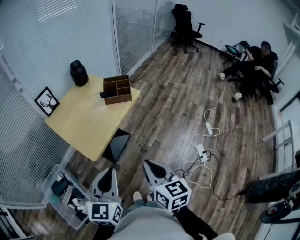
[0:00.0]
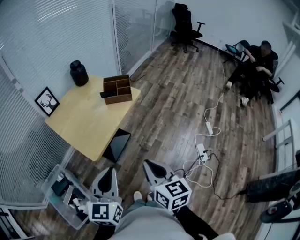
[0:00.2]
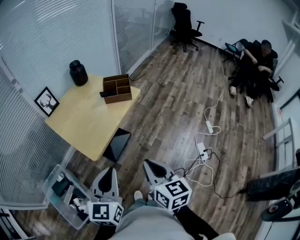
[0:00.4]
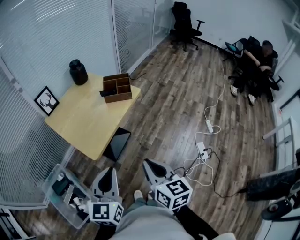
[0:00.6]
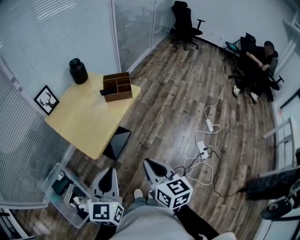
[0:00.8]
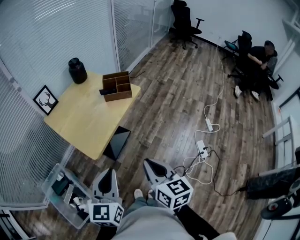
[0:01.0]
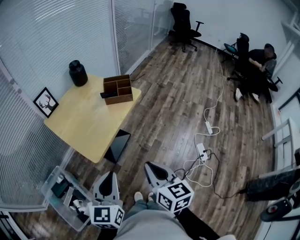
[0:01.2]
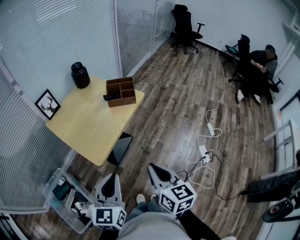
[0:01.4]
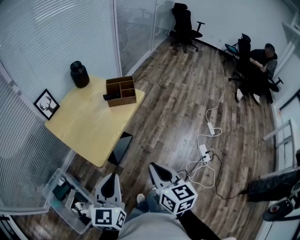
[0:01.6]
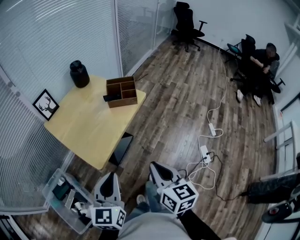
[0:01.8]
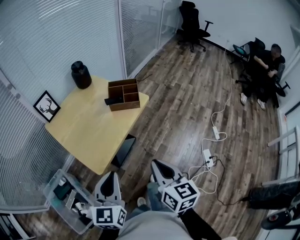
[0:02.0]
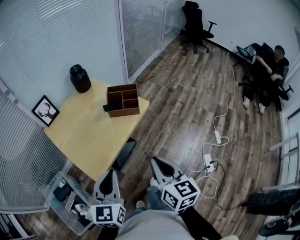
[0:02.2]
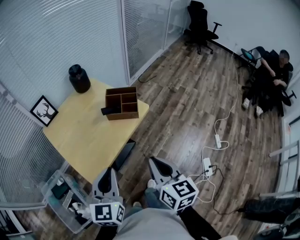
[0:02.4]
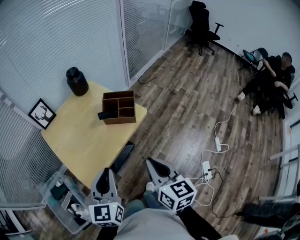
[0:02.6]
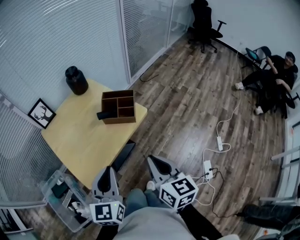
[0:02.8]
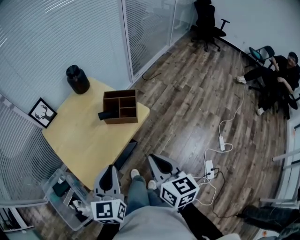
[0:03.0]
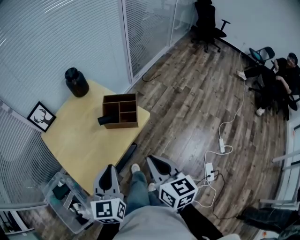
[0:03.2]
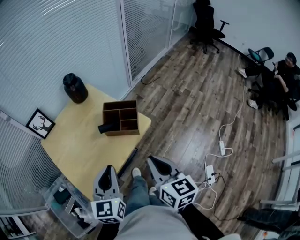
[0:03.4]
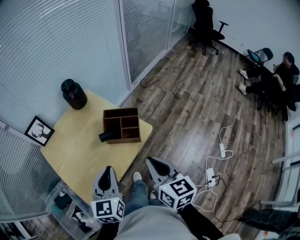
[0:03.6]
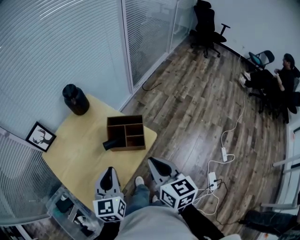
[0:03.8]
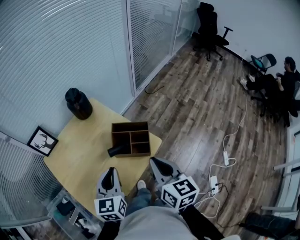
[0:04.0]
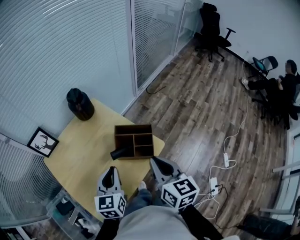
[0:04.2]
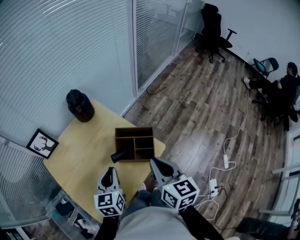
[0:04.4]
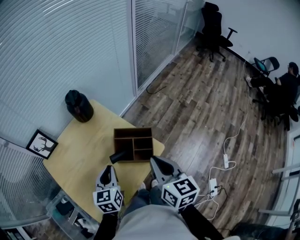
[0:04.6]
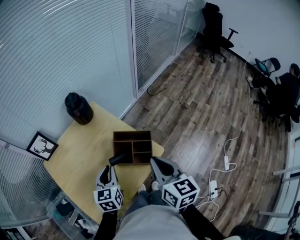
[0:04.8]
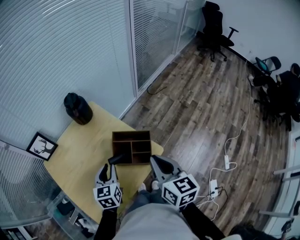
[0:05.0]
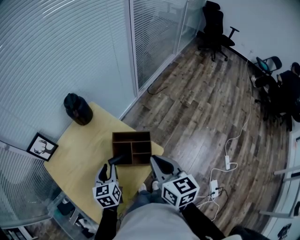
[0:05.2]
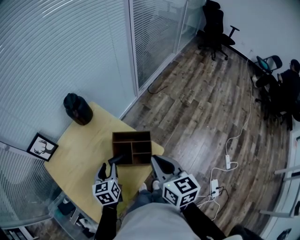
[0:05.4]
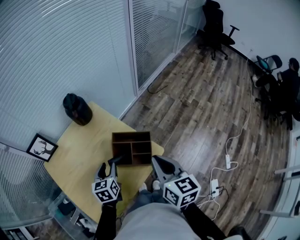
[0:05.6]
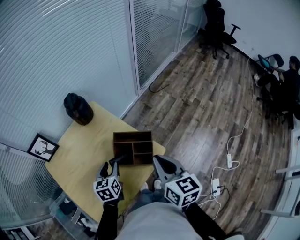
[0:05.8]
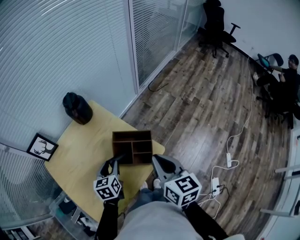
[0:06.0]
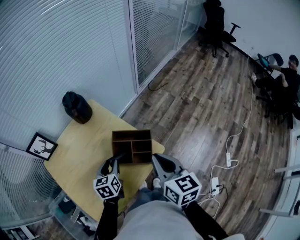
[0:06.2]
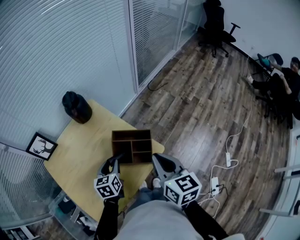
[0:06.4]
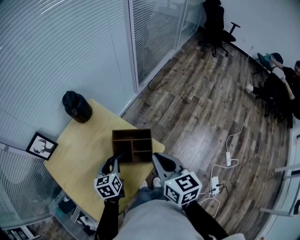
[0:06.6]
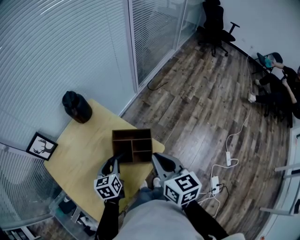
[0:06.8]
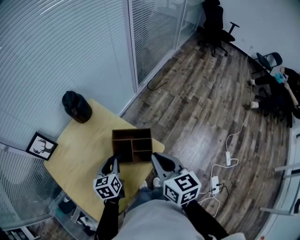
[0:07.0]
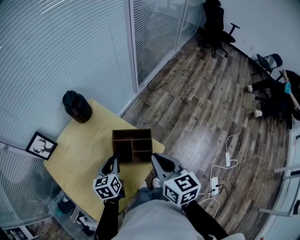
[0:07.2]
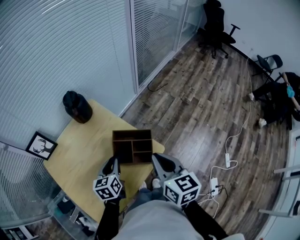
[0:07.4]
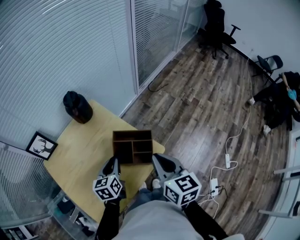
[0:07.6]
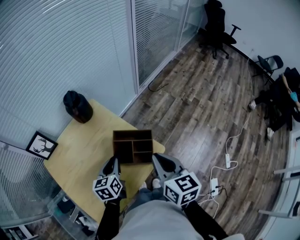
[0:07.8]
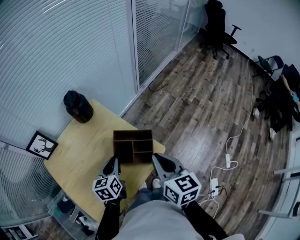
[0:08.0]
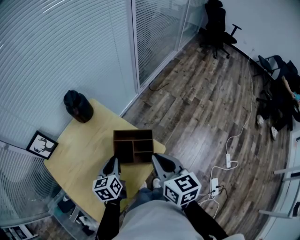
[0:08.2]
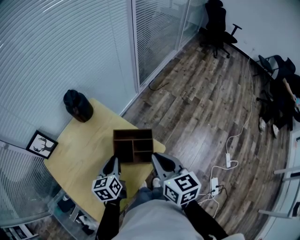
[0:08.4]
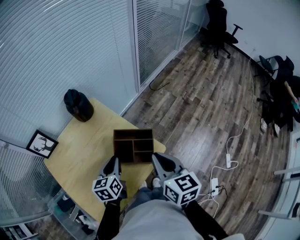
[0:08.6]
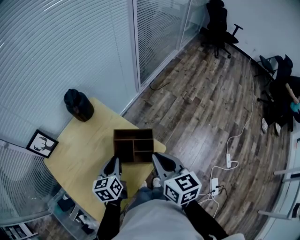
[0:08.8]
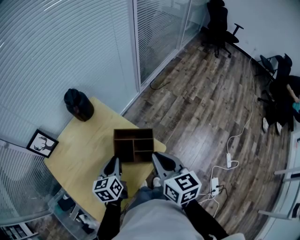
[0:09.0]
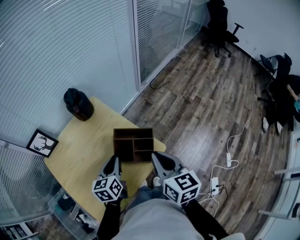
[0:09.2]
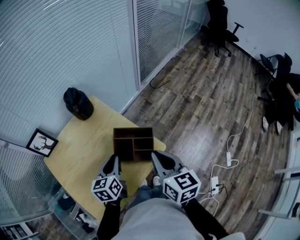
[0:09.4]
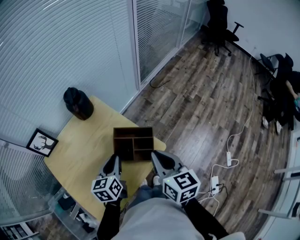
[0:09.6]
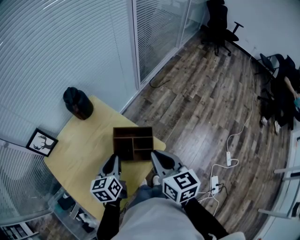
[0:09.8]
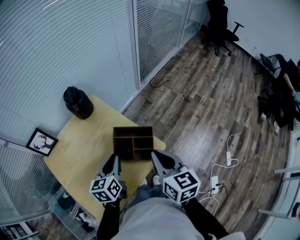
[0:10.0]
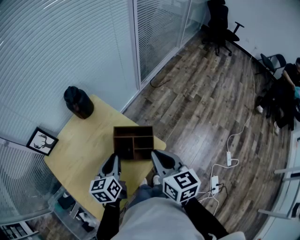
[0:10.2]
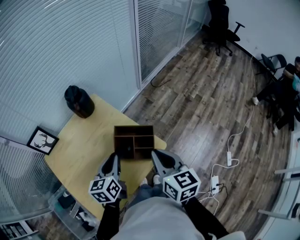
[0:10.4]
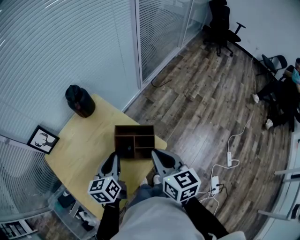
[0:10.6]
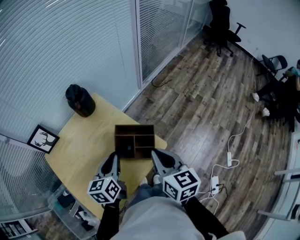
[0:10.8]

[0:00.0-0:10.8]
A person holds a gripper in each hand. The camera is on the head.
0:00.0 to 0:01.6: There are only small adjustments of the grippers.
0:01.6 to 0:03.0: The grippers both shift forward and to the right by about 25 cm.
0:03.0 to 0:04.6: The left gripper goes roughly 30 cm forward and downward. The right gripper moves forward, some 25 cm.
0:04.6 to 0:06.2: The left gripper goes approximately 5 cm downward, and opens its fingers.
0:06.2 to 0:09.2: There are only small adjustments of the grippers.
0:09.2 to 0:10.8: There are only small adjustments of the grippers.

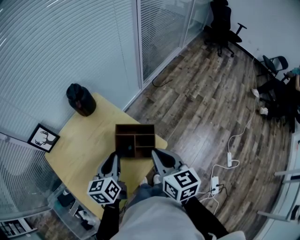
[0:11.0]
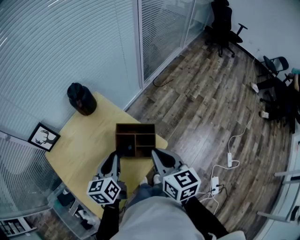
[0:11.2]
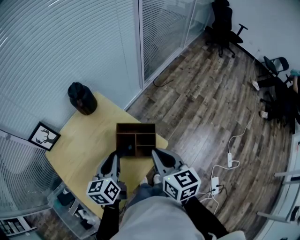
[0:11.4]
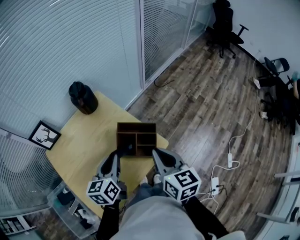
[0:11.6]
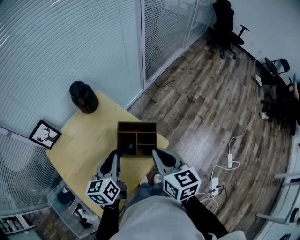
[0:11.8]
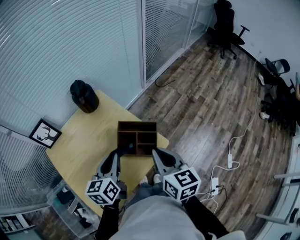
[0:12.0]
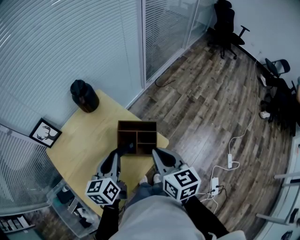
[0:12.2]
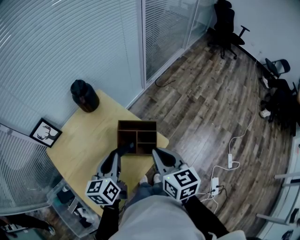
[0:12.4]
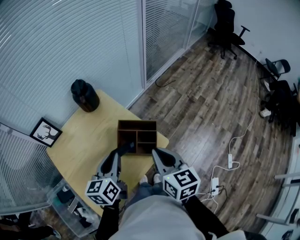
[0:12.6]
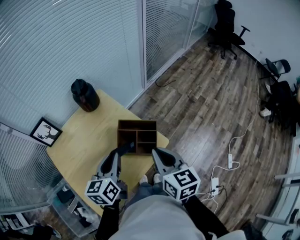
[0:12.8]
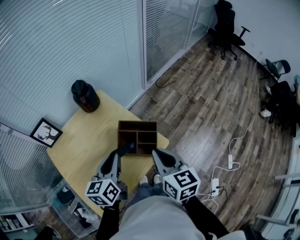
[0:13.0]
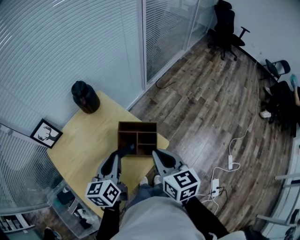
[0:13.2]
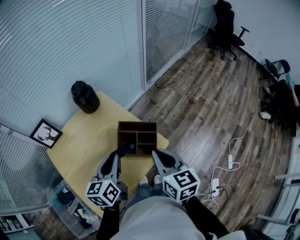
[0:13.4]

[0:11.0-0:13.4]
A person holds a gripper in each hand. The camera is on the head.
0:11.0 to 0:12.2: There are only small adjustments of the grippers.
0:12.2 to 0:13.4: Both grippers stay about where they are.

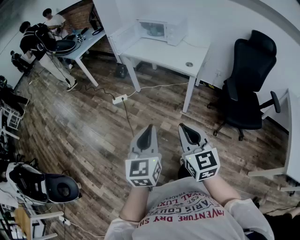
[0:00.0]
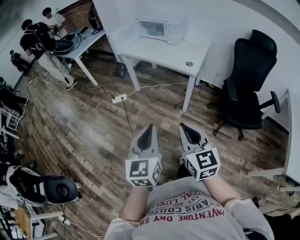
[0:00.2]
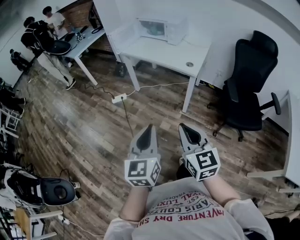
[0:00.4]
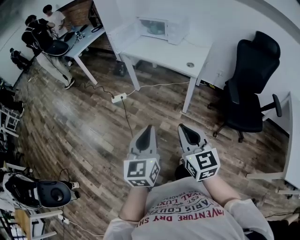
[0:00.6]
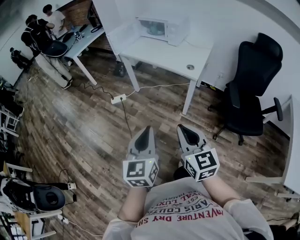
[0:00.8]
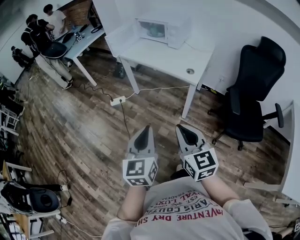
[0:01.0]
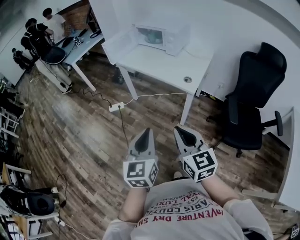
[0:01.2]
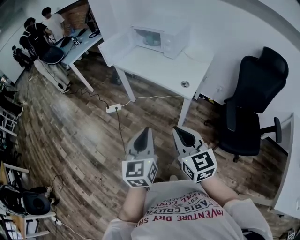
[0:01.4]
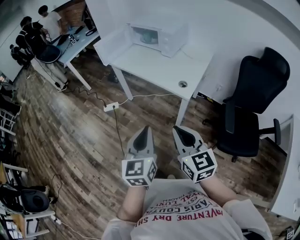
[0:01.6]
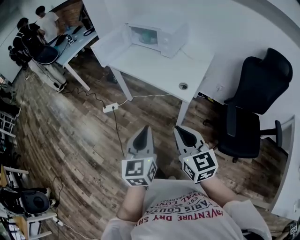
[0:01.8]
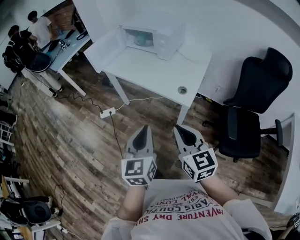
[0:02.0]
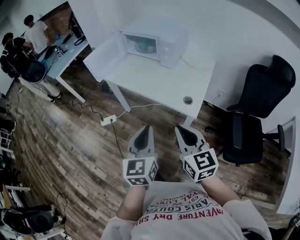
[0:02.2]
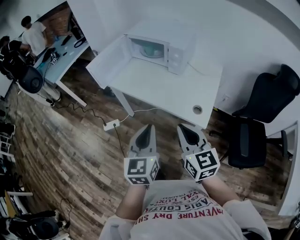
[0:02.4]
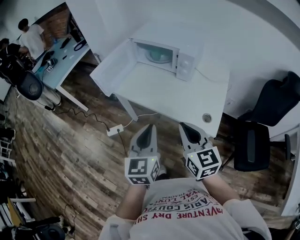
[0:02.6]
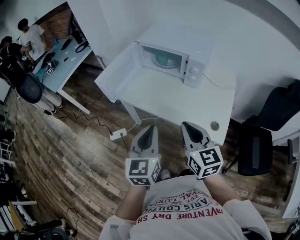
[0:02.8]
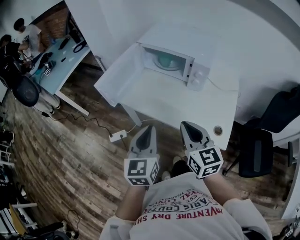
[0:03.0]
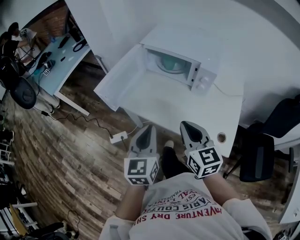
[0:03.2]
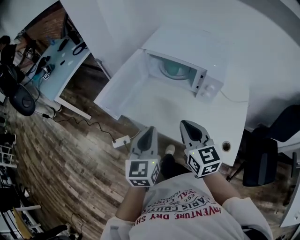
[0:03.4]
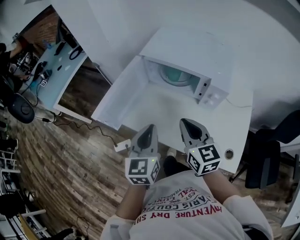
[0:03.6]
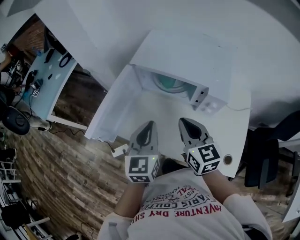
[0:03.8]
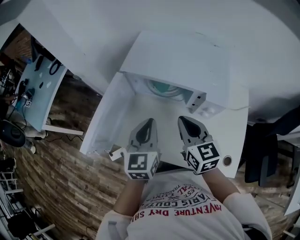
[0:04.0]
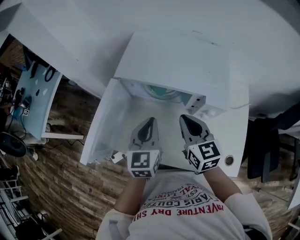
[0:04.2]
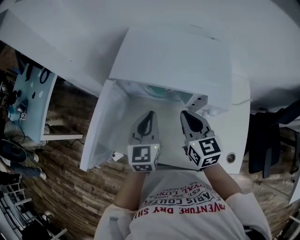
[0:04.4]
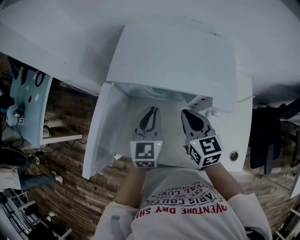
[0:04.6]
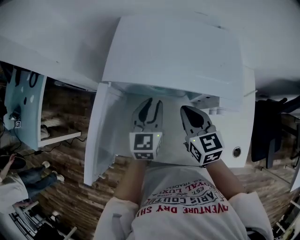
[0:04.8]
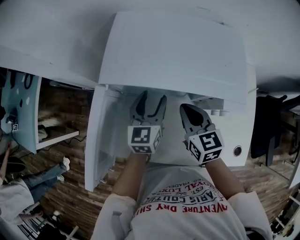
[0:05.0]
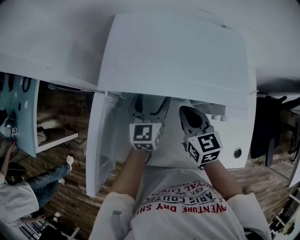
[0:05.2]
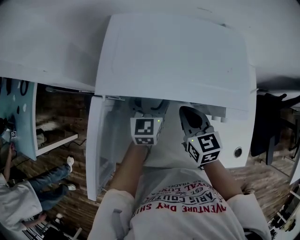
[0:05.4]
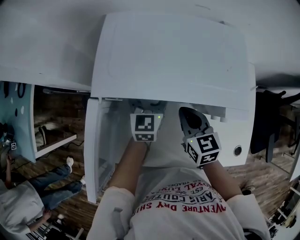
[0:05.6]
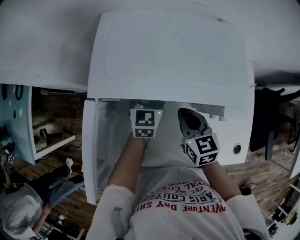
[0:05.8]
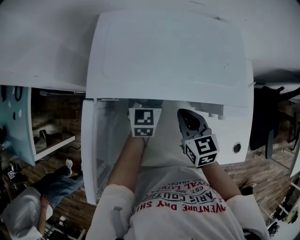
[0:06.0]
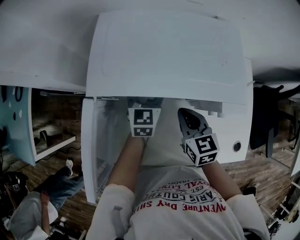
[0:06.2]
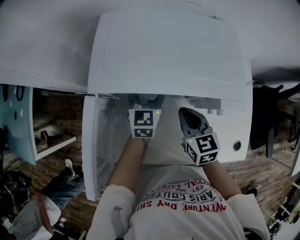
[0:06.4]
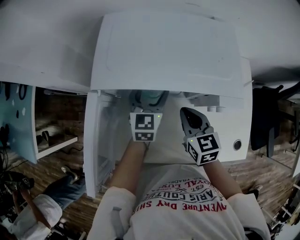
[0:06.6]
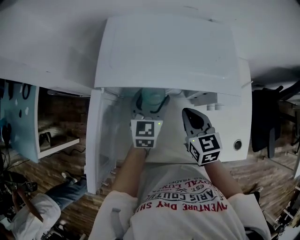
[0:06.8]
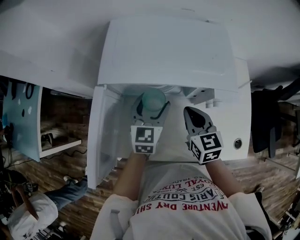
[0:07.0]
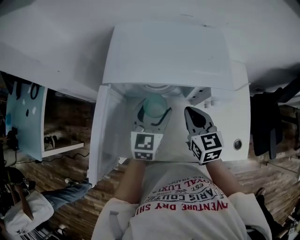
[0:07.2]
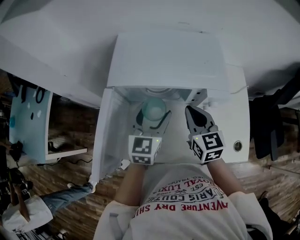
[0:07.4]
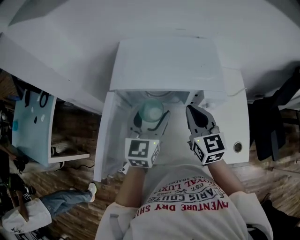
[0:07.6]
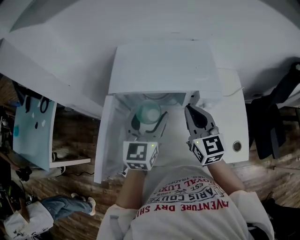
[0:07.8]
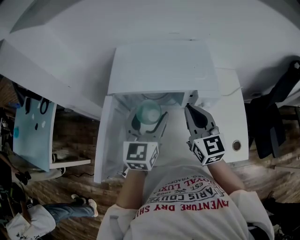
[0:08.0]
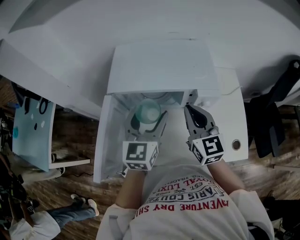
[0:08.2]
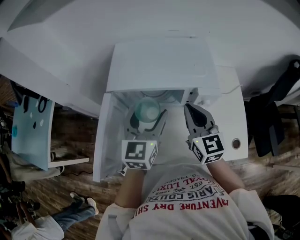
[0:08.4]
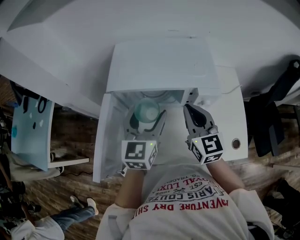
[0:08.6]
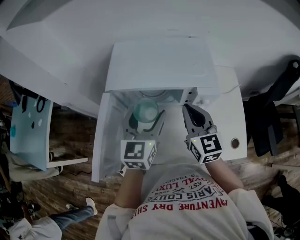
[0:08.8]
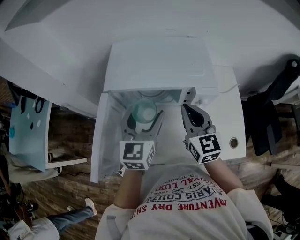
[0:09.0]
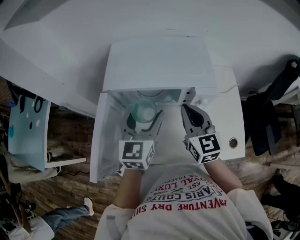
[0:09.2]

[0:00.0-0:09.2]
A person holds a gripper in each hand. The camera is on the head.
0:00.0 to 0:01.6: The two grippers go about 25 cm forward and to the right.
0:01.6 to 0:03.0: The pair of grippers is taken forward, some 40 cm.
0:03.0 to 0:04.6: The two grippers go about 35 cm forward. The left gripper swivels roughly 20 degrees.
0:04.6 to 0:06.2: The left gripper goes about 15 cm forward and downward, and opens. Meanwhile the right gripper heads downward, covering about 5 cm.
0:06.2 to 0:07.6: The right gripper heads upward, covering roughly 15 cm, and rotates some 20 degrees. Meanwhile the left gripper goes some 20 cm upward and backward.
0:07.6 to 0:09.2: There are only small adjustments of the grippers.

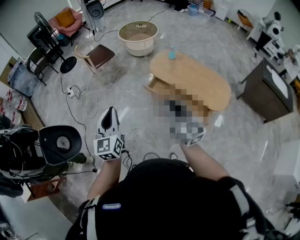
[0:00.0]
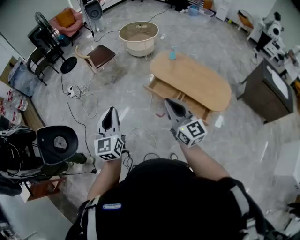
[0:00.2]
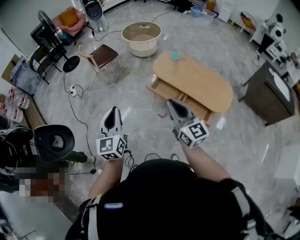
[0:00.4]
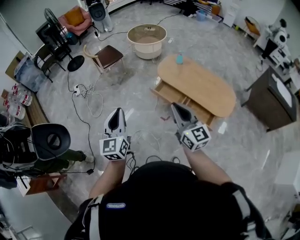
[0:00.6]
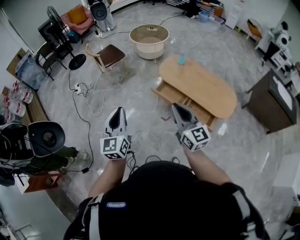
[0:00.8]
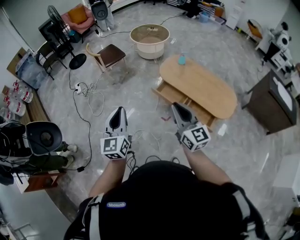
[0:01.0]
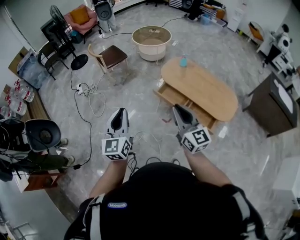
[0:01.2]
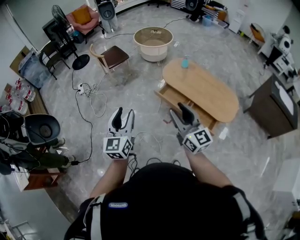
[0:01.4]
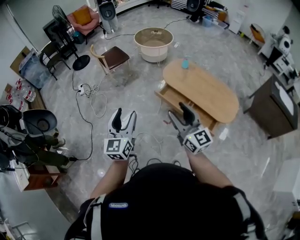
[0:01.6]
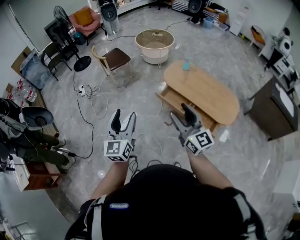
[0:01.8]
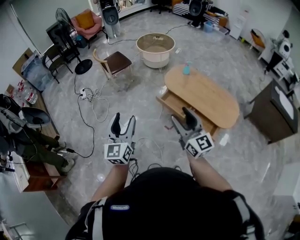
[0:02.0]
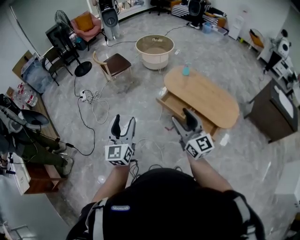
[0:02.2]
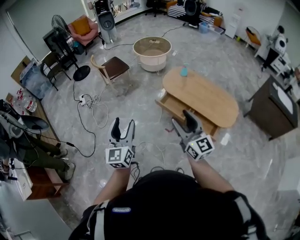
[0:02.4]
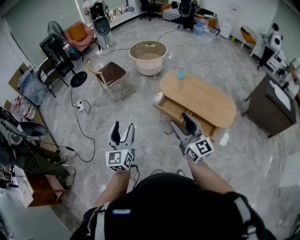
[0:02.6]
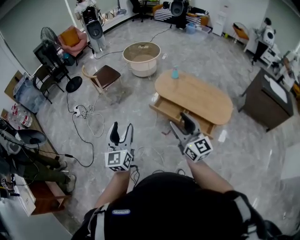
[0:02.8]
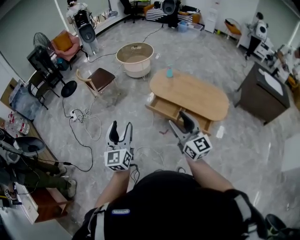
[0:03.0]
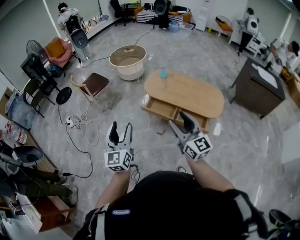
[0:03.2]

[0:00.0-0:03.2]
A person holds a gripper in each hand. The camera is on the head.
0:00.0 to 0:01.6: The left gripper opens up, while the right gripper opens.
0:01.6 to 0:03.2: There are only small adjustments of the grippers.
